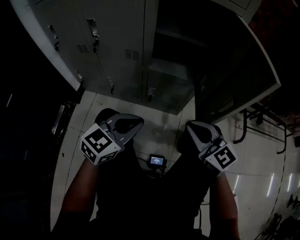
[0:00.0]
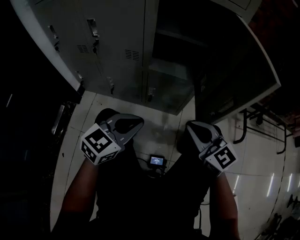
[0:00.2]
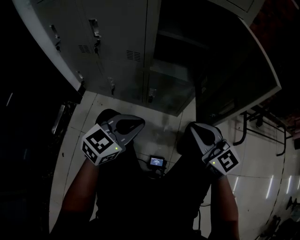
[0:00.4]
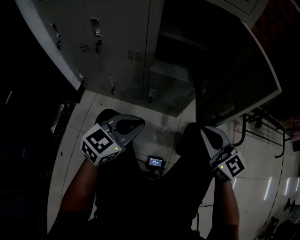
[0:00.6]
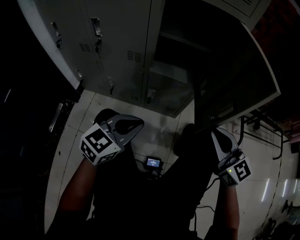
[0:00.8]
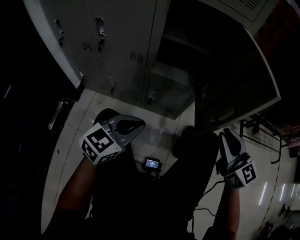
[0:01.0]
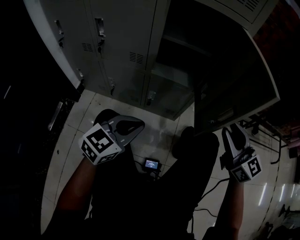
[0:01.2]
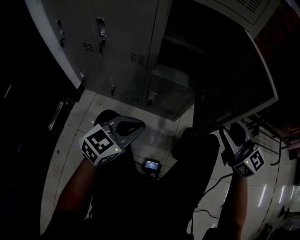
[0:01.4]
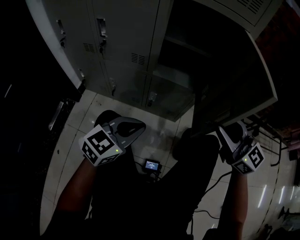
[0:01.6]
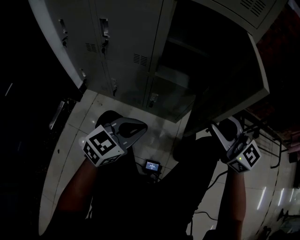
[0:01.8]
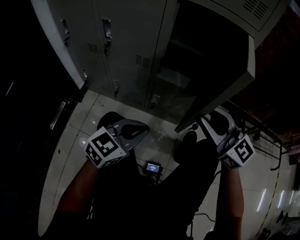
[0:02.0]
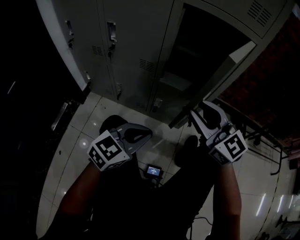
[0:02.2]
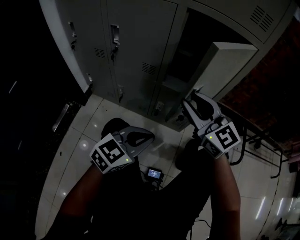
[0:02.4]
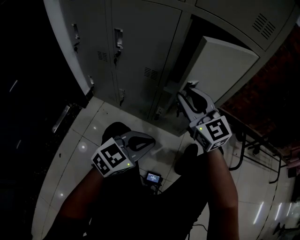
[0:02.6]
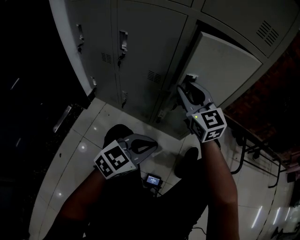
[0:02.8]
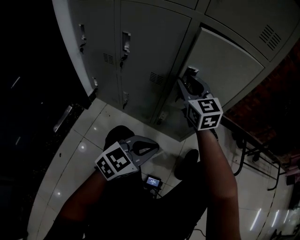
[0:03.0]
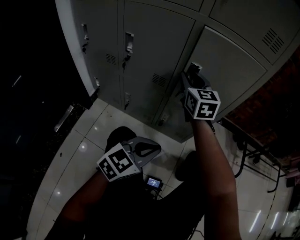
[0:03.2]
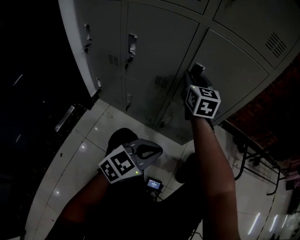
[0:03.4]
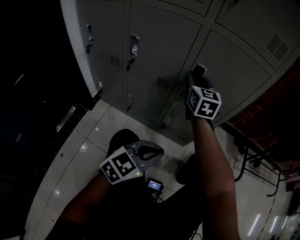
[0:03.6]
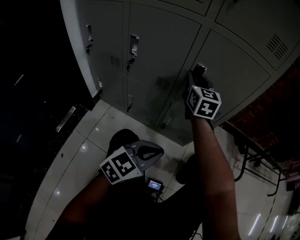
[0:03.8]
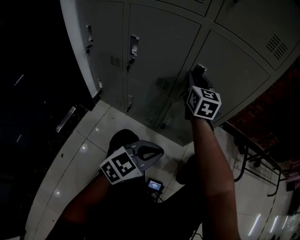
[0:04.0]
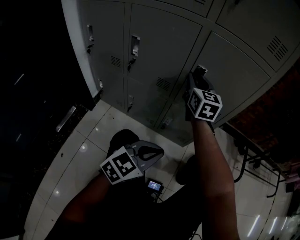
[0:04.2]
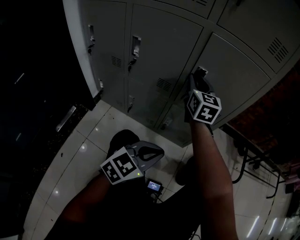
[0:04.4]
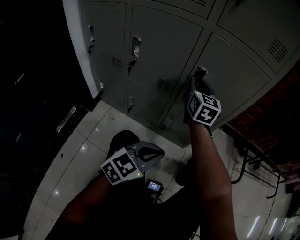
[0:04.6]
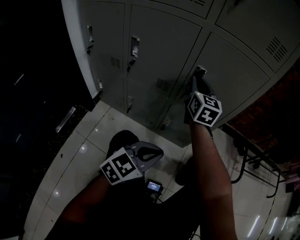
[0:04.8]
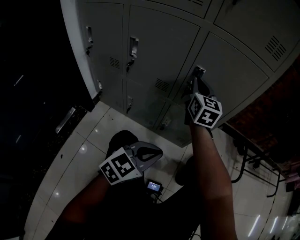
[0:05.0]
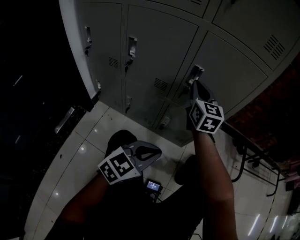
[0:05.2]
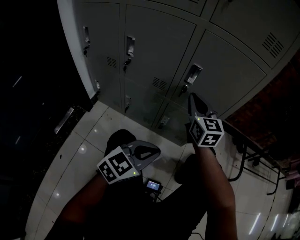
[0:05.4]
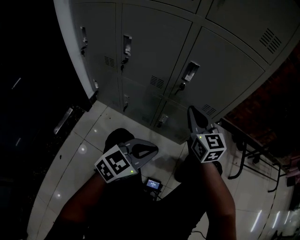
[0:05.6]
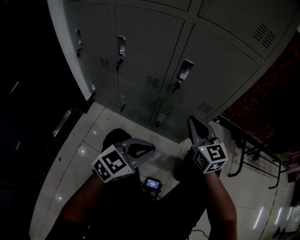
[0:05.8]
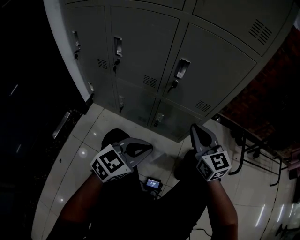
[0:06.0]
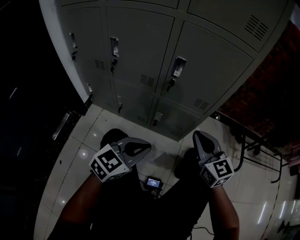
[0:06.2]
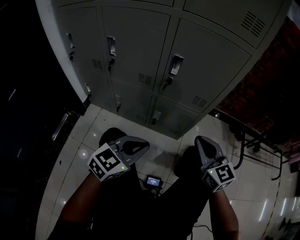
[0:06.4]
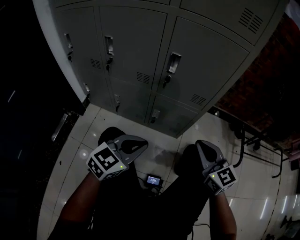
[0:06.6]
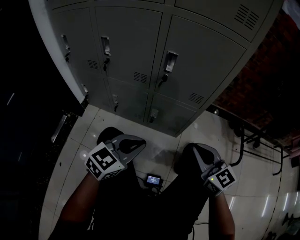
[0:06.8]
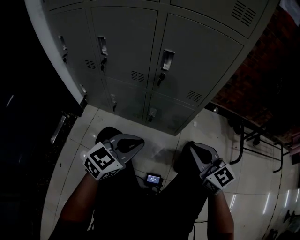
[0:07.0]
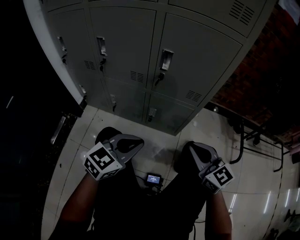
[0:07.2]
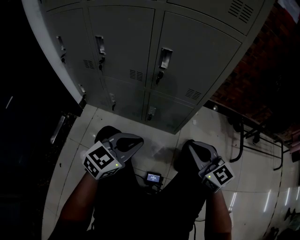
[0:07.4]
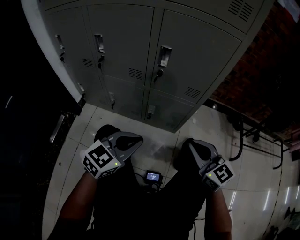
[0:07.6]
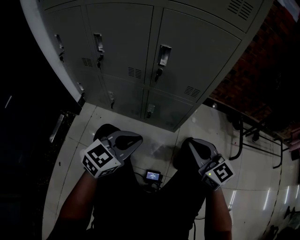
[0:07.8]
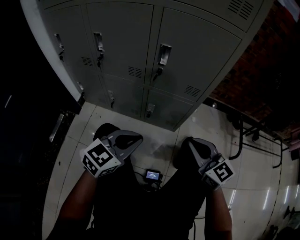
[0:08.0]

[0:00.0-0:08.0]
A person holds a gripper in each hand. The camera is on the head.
0.0 to 1.6 s: The right gripper shifts about 10 cm upward and to the right, and opens up.
1.6 to 3.2 s: The right gripper shifts roughly 30 cm forward and to the left, and turns by roughly 30 degrees.
3.2 to 4.8 s: The grippers make only small movements.
4.8 to 6.4 s: The right gripper moves backward and to the right, approximately 25 cm.
6.4 to 8.0 s: There are only small adjustments of the grippers.

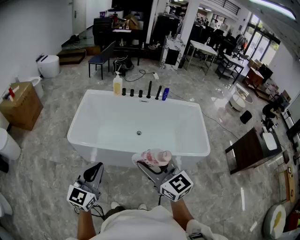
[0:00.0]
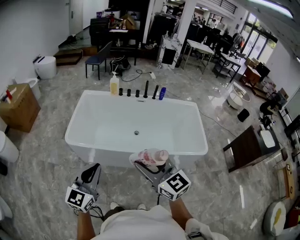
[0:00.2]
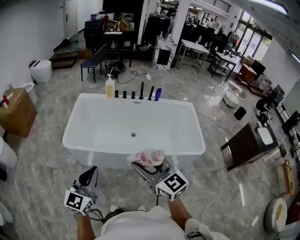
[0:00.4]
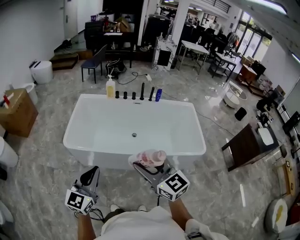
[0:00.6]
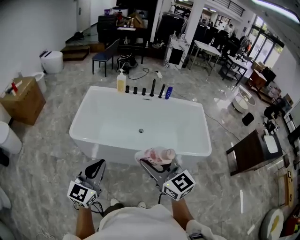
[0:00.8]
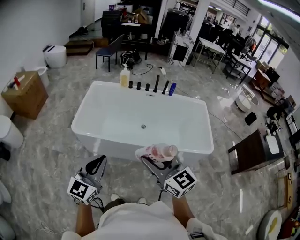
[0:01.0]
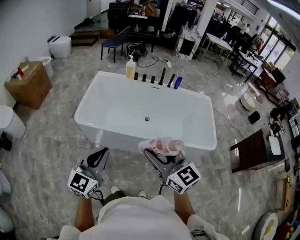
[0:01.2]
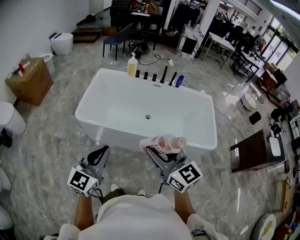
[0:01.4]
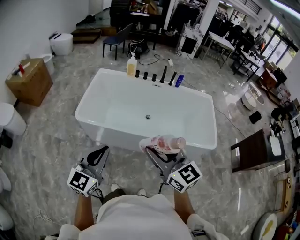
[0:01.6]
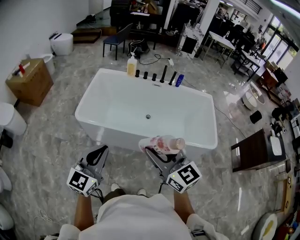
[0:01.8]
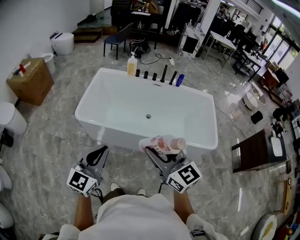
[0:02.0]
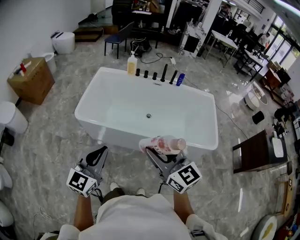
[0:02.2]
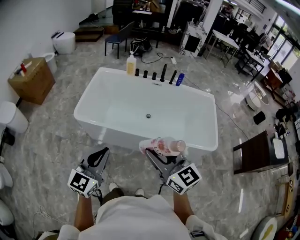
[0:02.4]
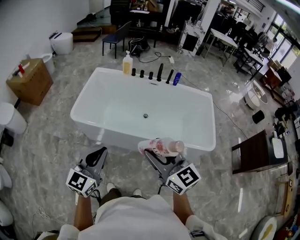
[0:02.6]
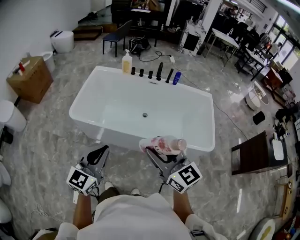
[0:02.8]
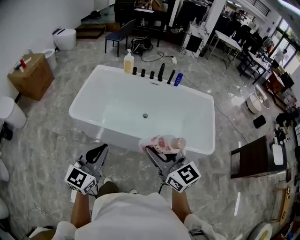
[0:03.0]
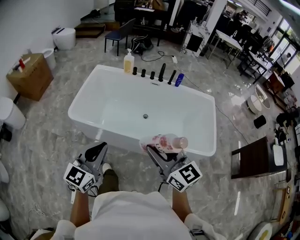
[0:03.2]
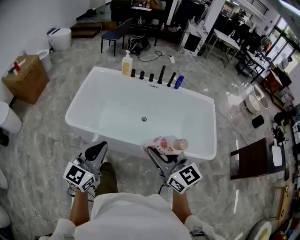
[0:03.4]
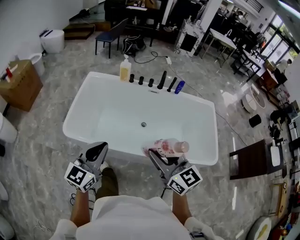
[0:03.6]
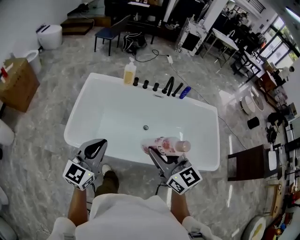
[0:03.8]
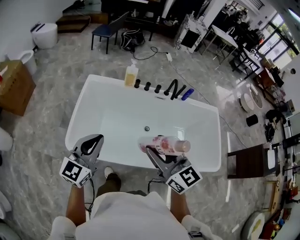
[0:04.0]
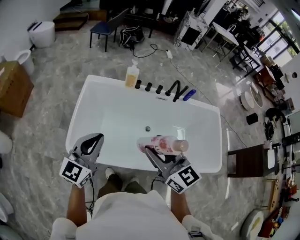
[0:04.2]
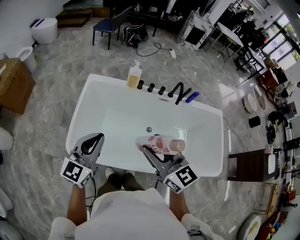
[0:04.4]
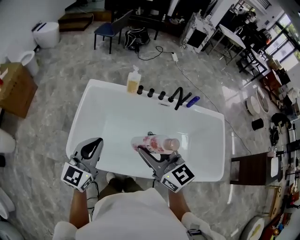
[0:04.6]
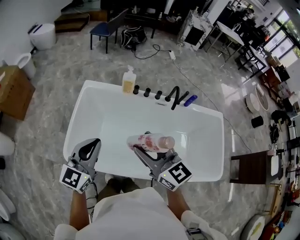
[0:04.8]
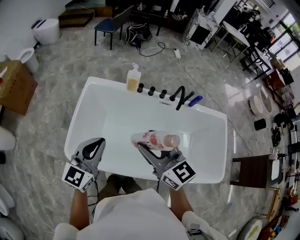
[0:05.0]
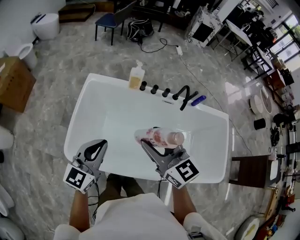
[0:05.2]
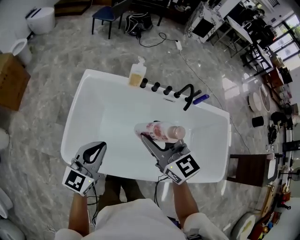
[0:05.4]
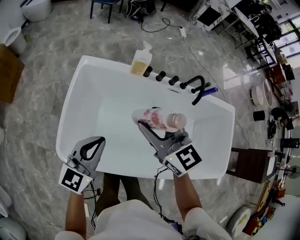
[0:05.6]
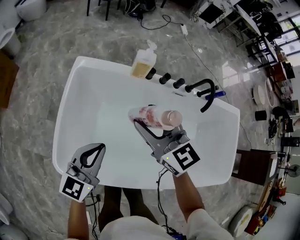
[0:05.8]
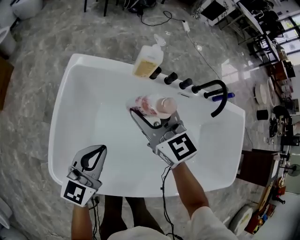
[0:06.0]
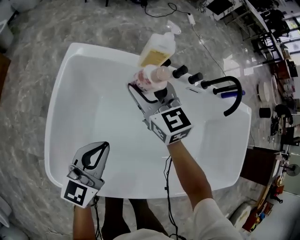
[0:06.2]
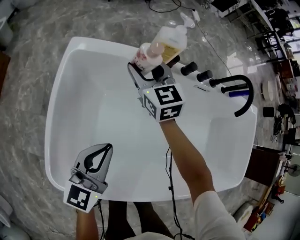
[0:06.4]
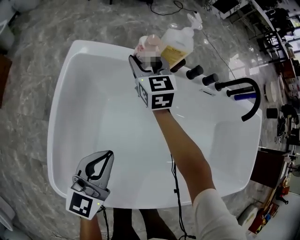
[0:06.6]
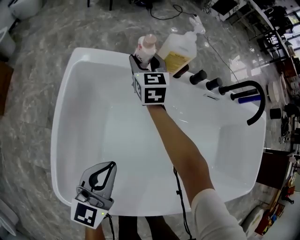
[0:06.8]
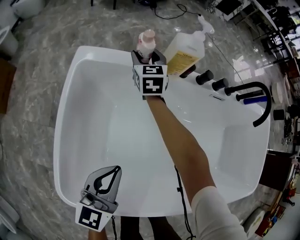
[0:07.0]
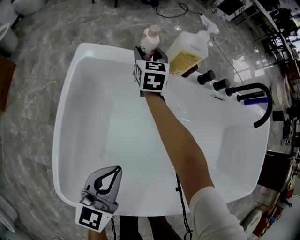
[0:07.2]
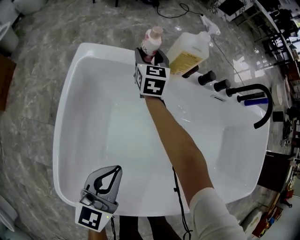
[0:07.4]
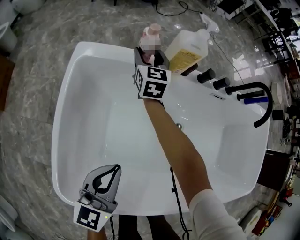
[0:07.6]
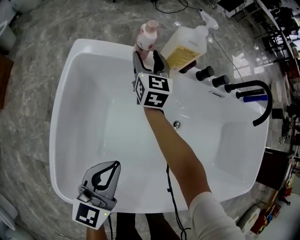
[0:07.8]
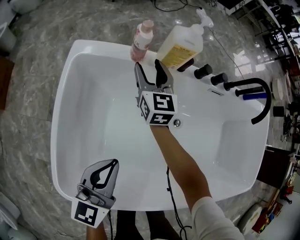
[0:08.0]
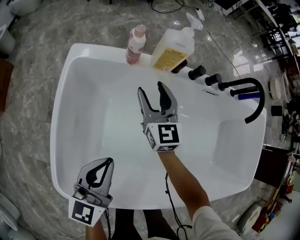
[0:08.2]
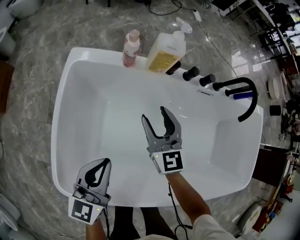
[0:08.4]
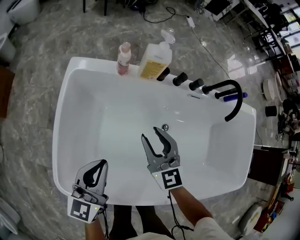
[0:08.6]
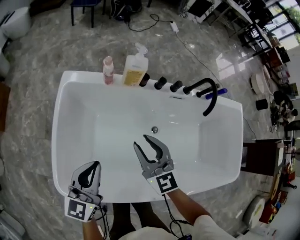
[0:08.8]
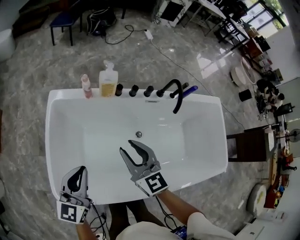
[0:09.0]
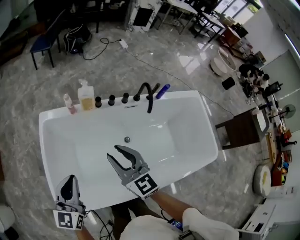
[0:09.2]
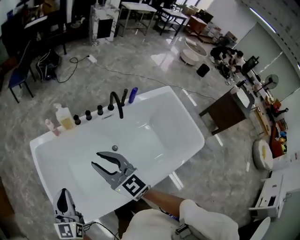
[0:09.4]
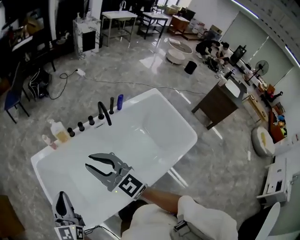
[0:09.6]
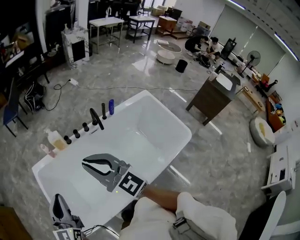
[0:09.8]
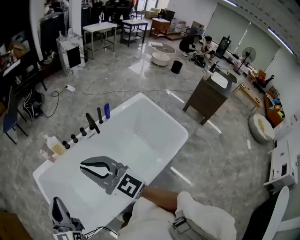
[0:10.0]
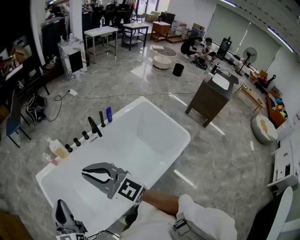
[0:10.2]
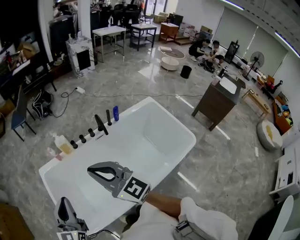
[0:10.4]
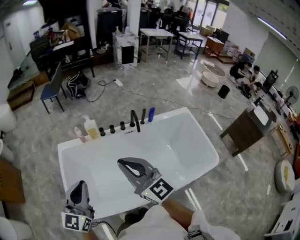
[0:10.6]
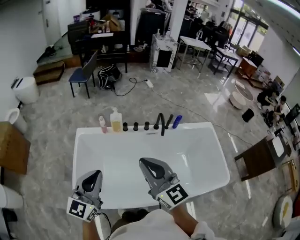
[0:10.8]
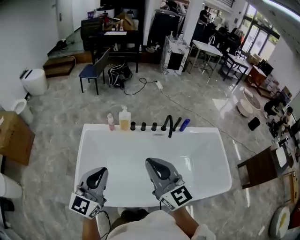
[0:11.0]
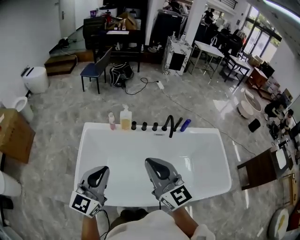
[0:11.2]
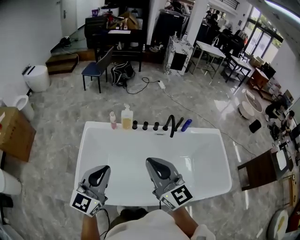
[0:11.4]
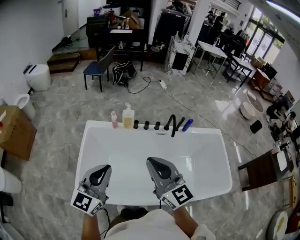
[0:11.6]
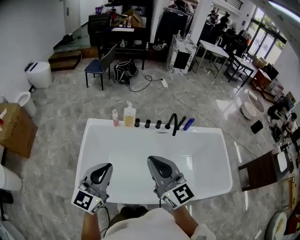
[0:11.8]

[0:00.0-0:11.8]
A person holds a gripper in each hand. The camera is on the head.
0.0 to 1.4 s: There are only small adjustments of the grippers.
1.4 to 3.0 s: Both grippers travel together to the right, about 10 cm.
3.0 to 4.4 s: The two grippers travel together, forward and to the left, approximately 50 cm.
4.4 to 6.0 s: The left gripper shifts some 35 cm downward and forward. The right gripper goes about 40 cm forward and downward.
6.0 to 7.4 s: The left gripper travels downward by roughly 10 cm. The right gripper goes some 35 cm forward and downward, and swivels roughly 30 degrees.
7.4 to 8.8 s: The left gripper travels upward by about 15 cm. The right gripper moves backward, upward and to the right, some 40 cm, and closes.
8.8 to 10.4 s: The right gripper heads upward and backward, covering about 40 cm, and closes up. The left gripper moves upward, roughly 30 cm, and swivels roughly 20 degrees.
10.4 to 11.8 s: There are only small adjustments of the grippers.

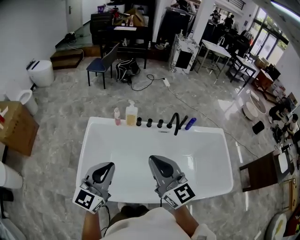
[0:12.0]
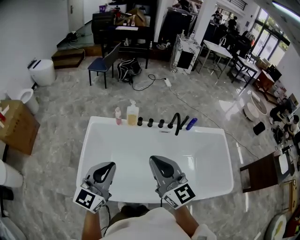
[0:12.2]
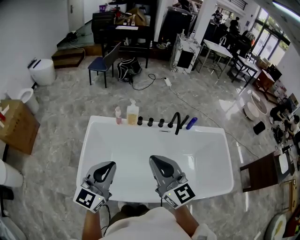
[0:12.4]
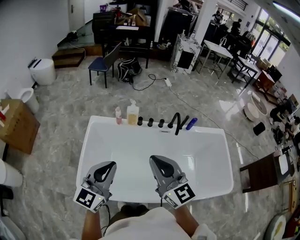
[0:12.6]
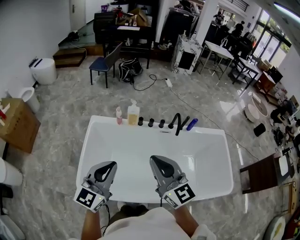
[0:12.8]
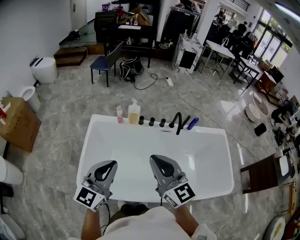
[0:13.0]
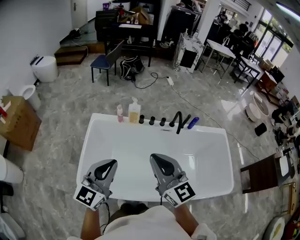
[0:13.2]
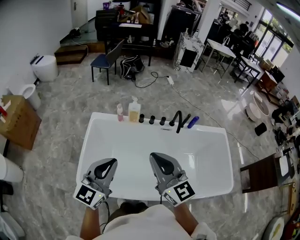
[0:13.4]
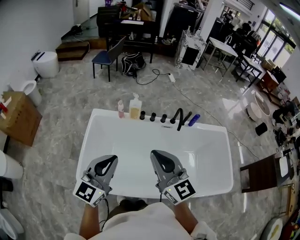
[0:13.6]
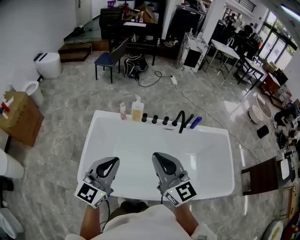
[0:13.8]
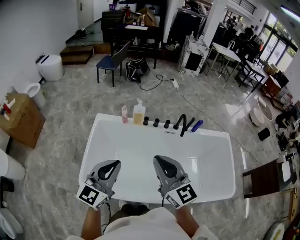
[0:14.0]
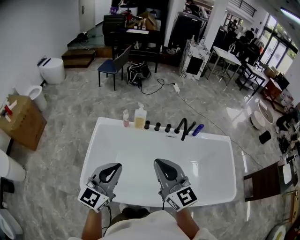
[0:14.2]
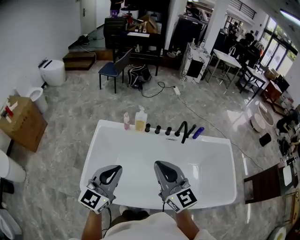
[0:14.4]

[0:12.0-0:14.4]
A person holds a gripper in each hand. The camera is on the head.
12.0 to 14.4 s: The two grippers keep their place.

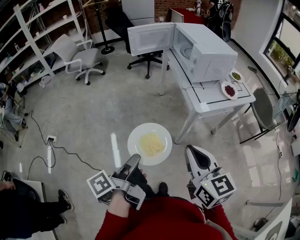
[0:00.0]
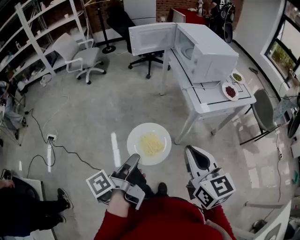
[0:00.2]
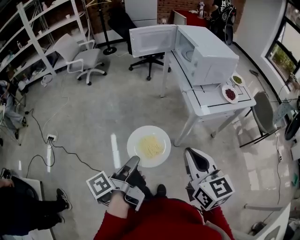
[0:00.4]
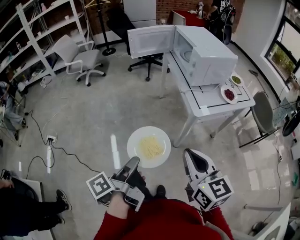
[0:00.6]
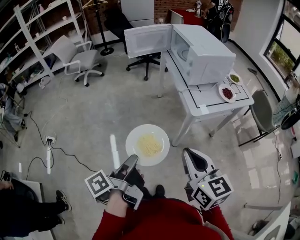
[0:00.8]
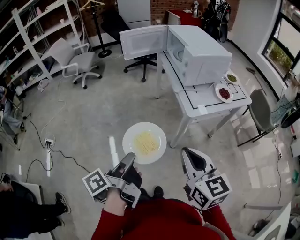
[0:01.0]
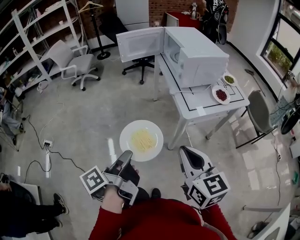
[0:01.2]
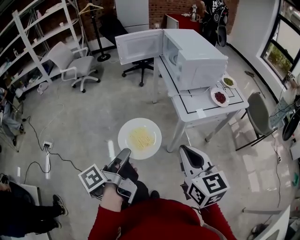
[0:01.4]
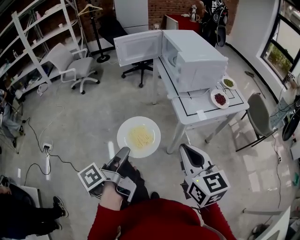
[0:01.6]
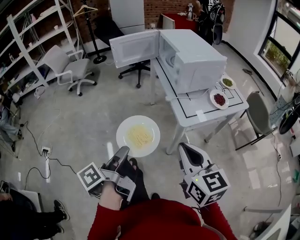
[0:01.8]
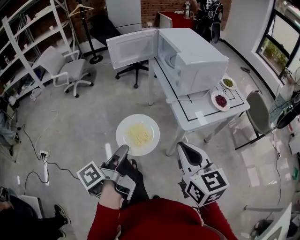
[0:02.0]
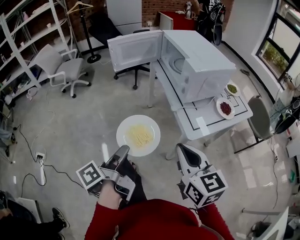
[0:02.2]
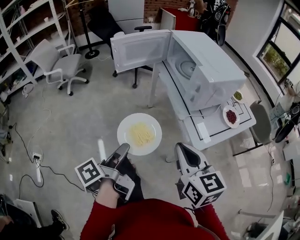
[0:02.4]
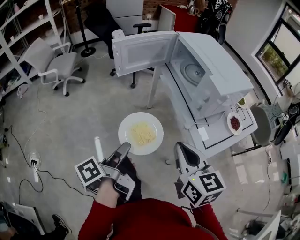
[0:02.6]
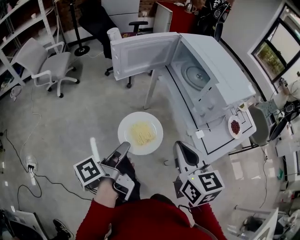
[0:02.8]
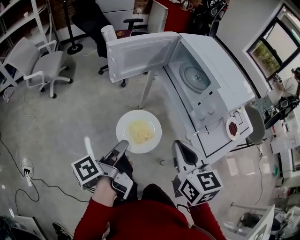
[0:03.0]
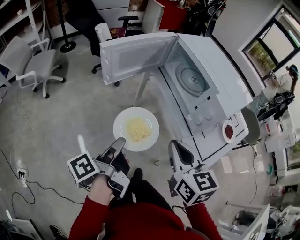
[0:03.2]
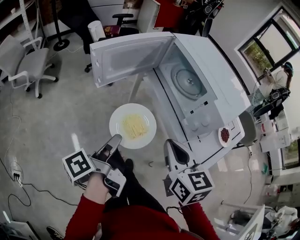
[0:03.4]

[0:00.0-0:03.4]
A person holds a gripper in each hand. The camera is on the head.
0.0 to 1.6 s: The left gripper heads forward, covering approximately 5 cm. The right gripper goes approximately 10 cm to the right and forward.
1.6 to 3.4 s: The left gripper goes about 40 cm forward, while the right gripper moves forward and to the left, some 35 cm, and swivels approximately 20 degrees.
